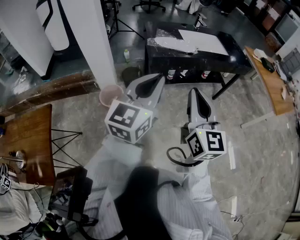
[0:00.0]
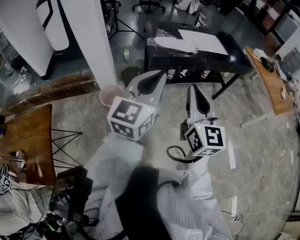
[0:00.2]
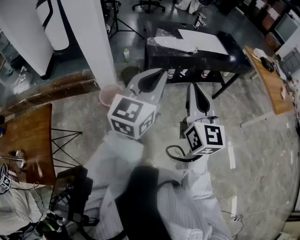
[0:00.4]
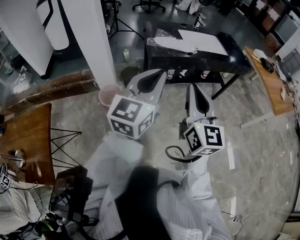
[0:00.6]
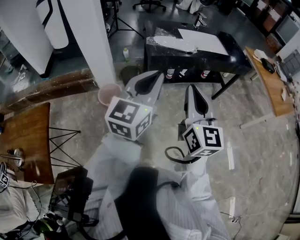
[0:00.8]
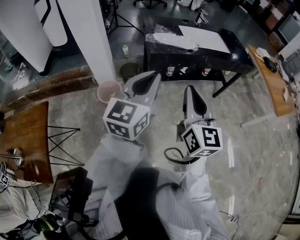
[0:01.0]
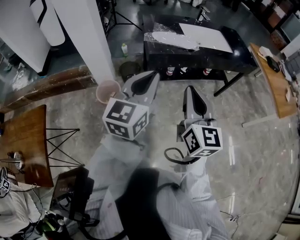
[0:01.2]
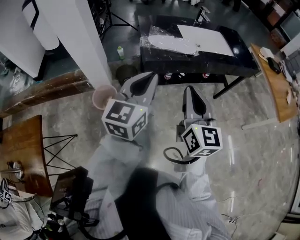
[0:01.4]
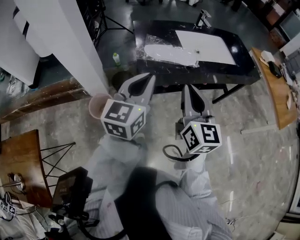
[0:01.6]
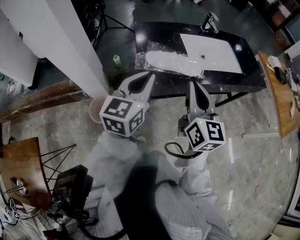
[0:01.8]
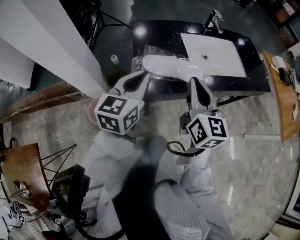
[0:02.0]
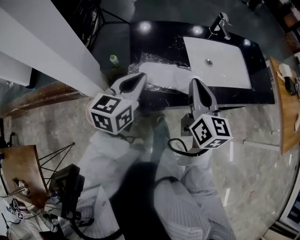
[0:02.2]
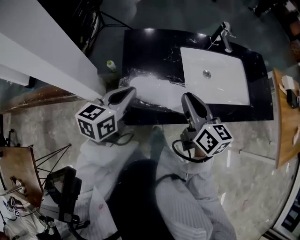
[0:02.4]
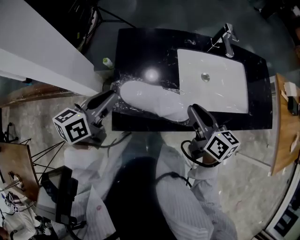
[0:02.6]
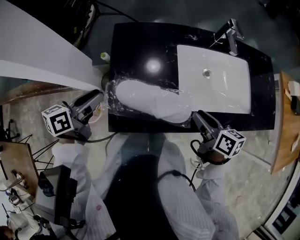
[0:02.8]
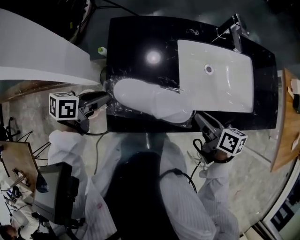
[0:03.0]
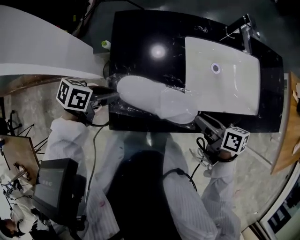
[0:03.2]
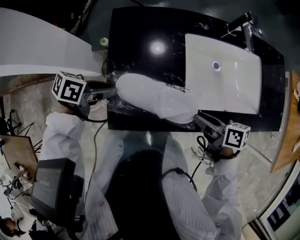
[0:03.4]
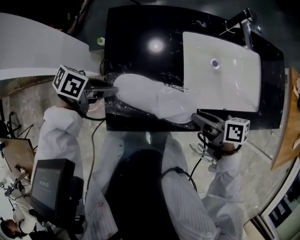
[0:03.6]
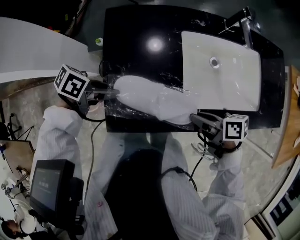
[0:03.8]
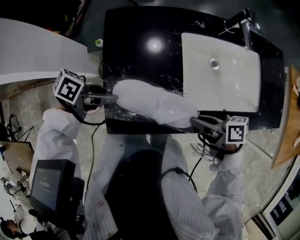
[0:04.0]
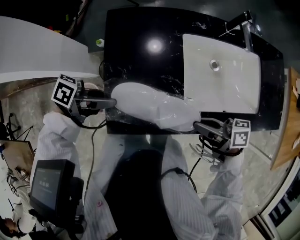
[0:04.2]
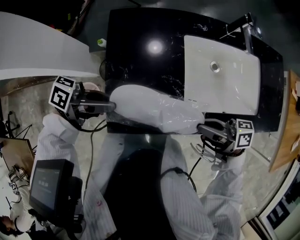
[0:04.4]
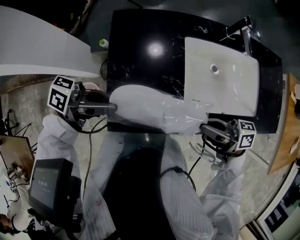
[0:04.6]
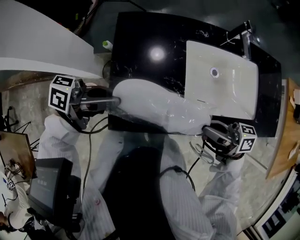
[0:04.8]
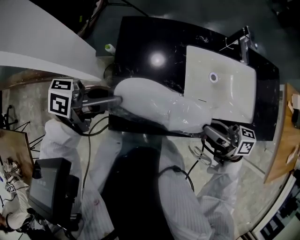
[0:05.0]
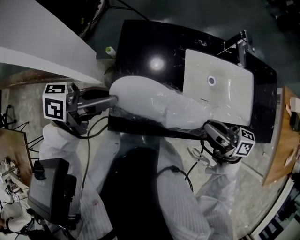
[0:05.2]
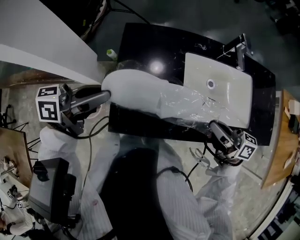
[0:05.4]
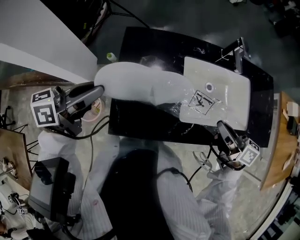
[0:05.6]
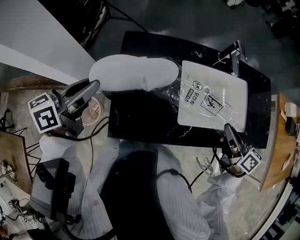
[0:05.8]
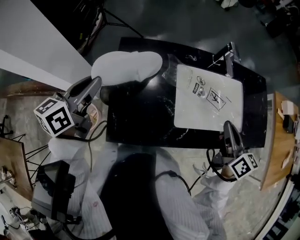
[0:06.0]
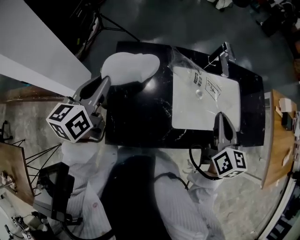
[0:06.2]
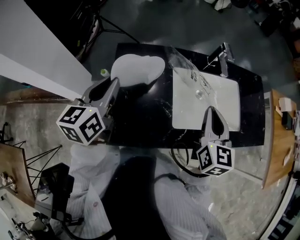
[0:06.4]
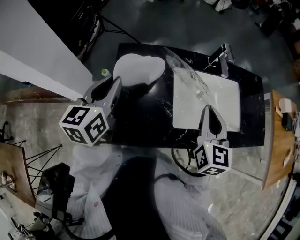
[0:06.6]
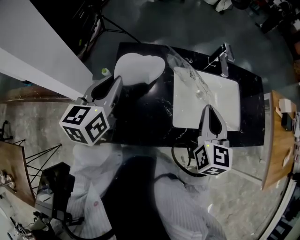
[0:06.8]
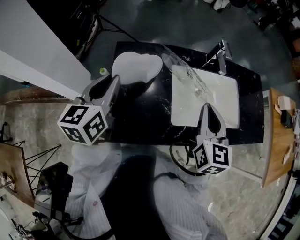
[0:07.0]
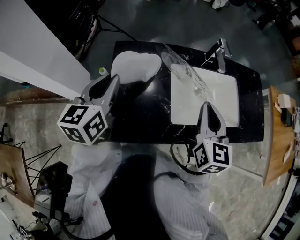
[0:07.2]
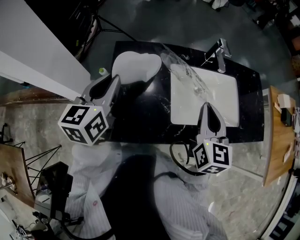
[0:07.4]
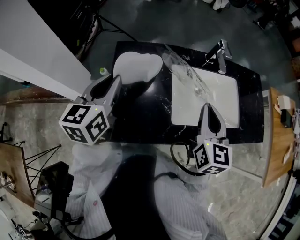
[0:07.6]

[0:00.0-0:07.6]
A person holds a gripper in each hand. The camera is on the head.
0:00.0 to 0:01.6: Both grippers travel together forward, approximately 25 cm.
0:01.6 to 0:03.0: The left gripper goes roughly 35 cm forward and downward, tilts its fingers approximately 30 degrees downward, and opens, while the right gripper goes some 40 cm forward, downward and to the right, tilts its fingers roughly 40 degrees downward, and opens.
0:03.0 to 0:04.6: Both grippers travel together upward, approximately 5 cm. The right gripper tilts its fingers about 30 degrees upward, and closes its fingers, while the left gripper points its fingers approximately 30 degrees further upward.
0:04.6 to 0:06.0: The right gripper ends up roughly 15 cm from where it was, and swivels some 60 degrees, while the left gripper shifts by some 15 cm, and rotates about 70 degrees.
0:06.0 to 0:07.6: The right gripper heads to the left, covering some 10 cm, and changes its angle by about 30 degrees. Meanwhile the left gripper moves to the right, roughly 5 cm.

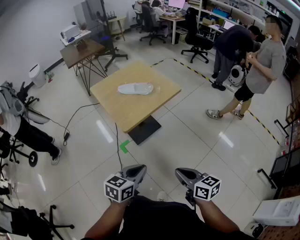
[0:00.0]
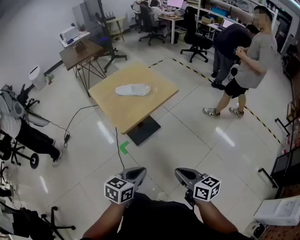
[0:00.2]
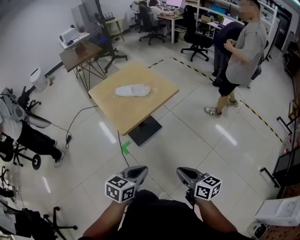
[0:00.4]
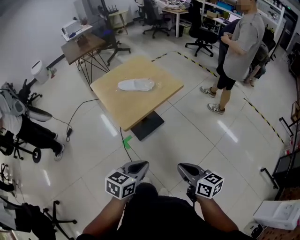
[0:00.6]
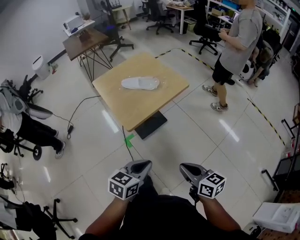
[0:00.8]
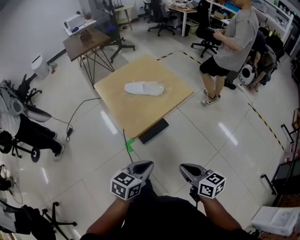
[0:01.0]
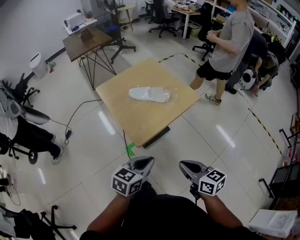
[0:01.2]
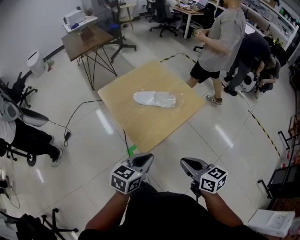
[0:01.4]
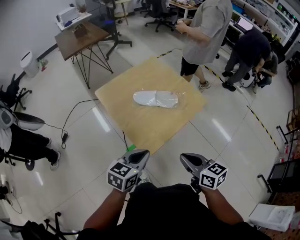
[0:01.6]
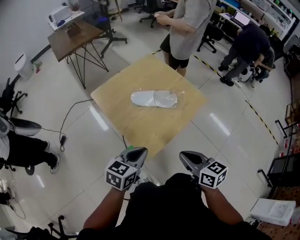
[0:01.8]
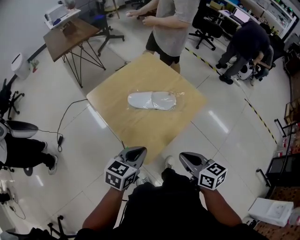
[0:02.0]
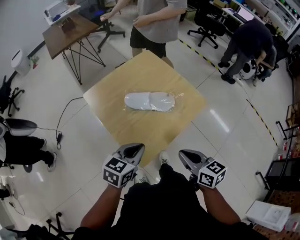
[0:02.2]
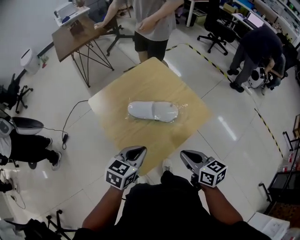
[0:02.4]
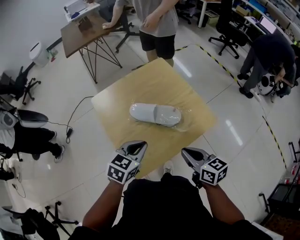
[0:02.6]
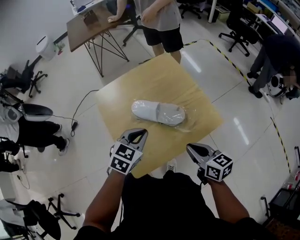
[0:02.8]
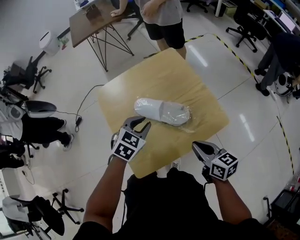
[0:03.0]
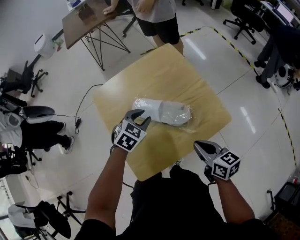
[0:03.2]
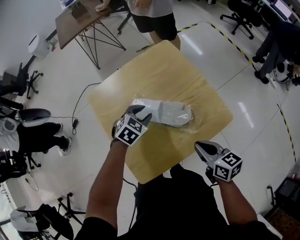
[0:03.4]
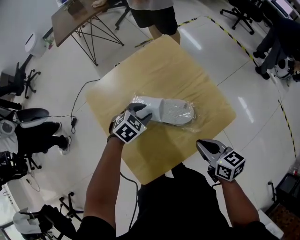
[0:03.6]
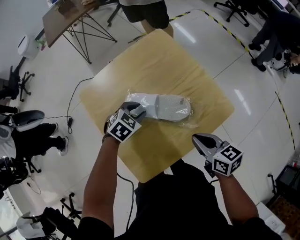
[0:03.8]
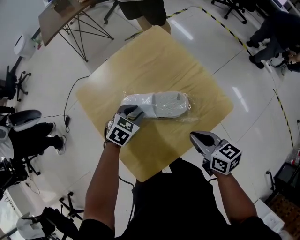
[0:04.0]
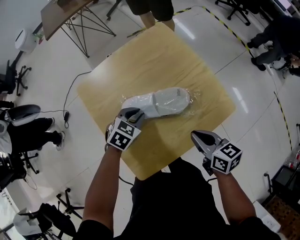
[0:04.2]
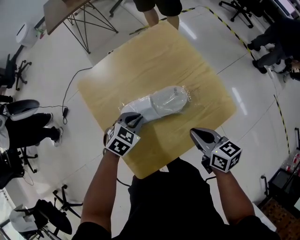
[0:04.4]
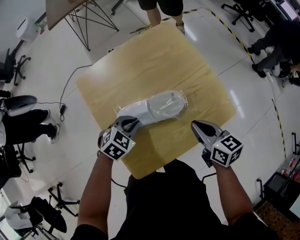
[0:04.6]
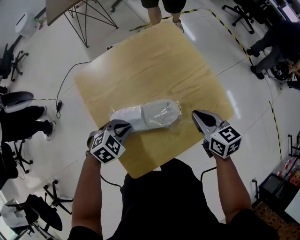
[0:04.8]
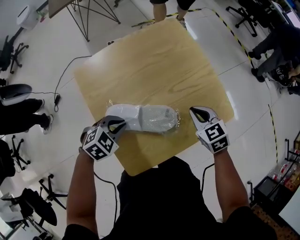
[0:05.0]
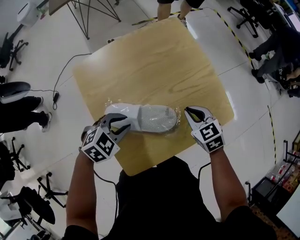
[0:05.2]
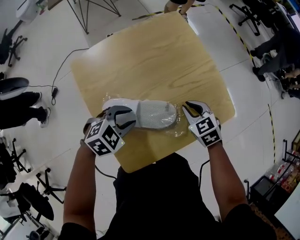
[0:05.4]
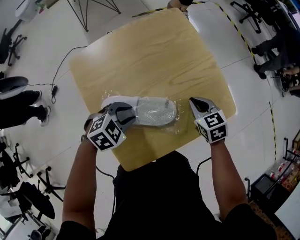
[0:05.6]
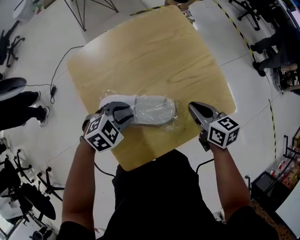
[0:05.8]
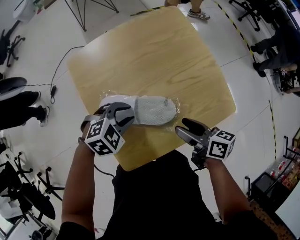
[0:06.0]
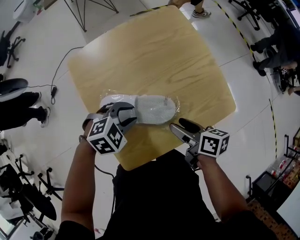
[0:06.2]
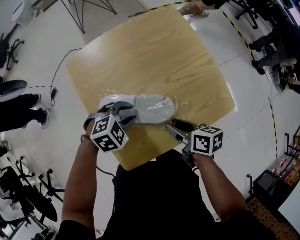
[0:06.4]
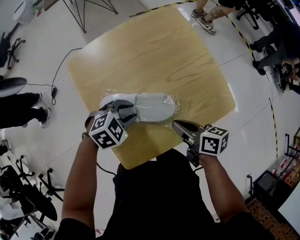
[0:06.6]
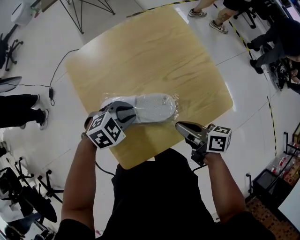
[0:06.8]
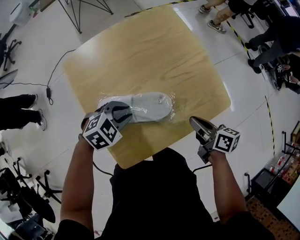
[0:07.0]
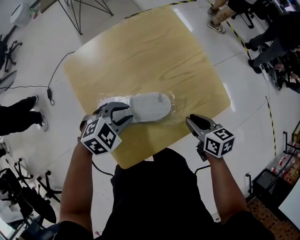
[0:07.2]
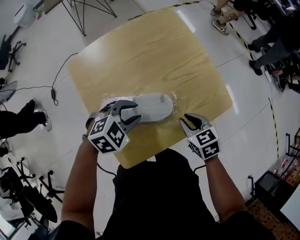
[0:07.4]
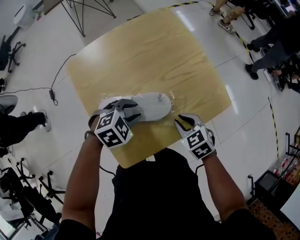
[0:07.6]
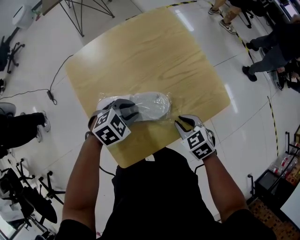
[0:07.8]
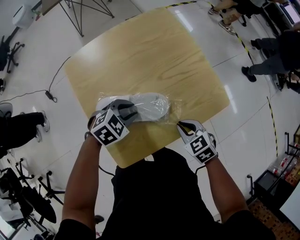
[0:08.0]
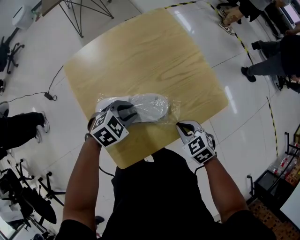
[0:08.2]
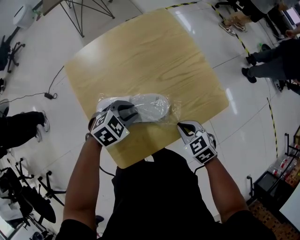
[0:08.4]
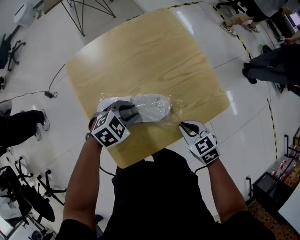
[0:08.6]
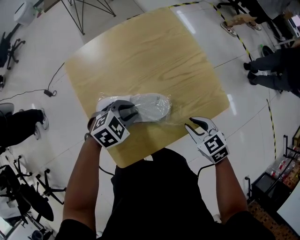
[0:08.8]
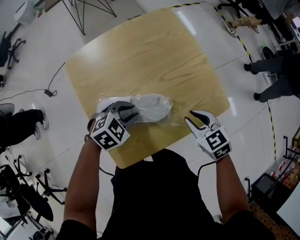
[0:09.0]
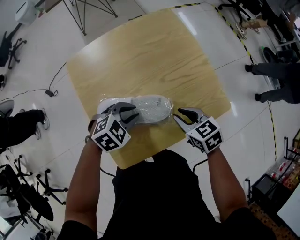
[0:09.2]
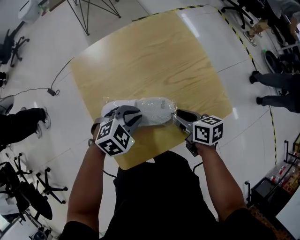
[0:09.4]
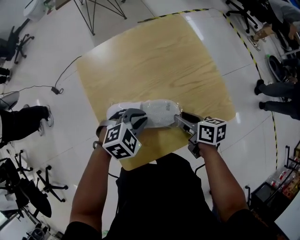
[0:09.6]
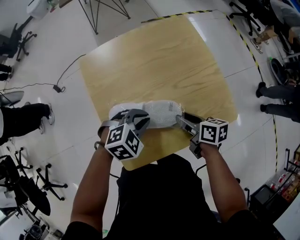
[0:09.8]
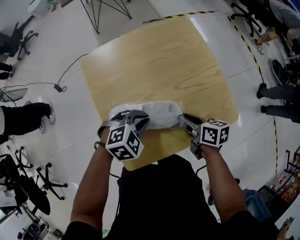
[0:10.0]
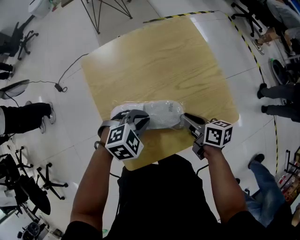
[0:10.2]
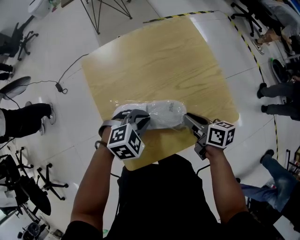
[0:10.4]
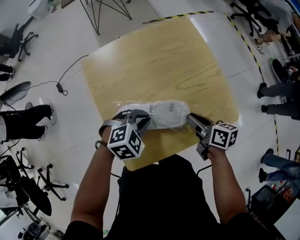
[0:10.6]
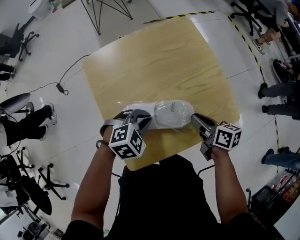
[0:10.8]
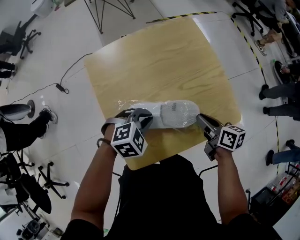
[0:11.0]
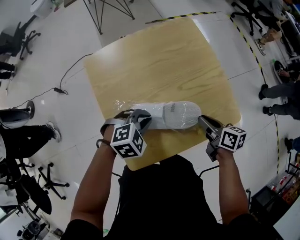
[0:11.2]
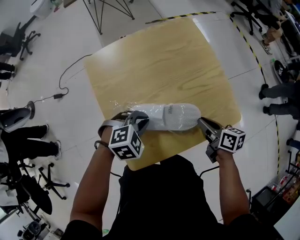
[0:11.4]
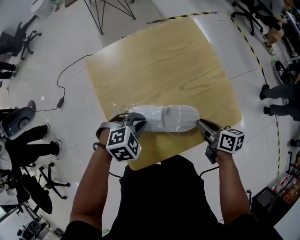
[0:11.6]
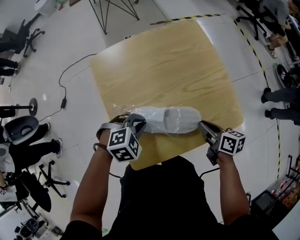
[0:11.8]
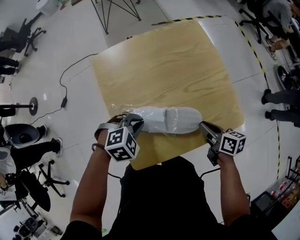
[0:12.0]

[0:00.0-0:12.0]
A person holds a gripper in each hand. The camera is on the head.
0:00.0 to 0:01.6: Both grippers move forward and to the left, roughly 35 cm.
0:01.6 to 0:03.0: The left gripper heads forward, covering approximately 30 cm, and swivels about 30 degrees, while the right gripper heads forward and to the right, covering roughly 30 cm.
0:03.0 to 0:04.4: The left gripper is displaced downward by roughly 15 cm. Meanwhile the right gripper travels downward by some 5 cm.
0:04.4 to 0:06.0: The right gripper goes downward and returns, about 10 cm each way, rotates roughly 20 degrees, and opens. The left gripper swivels approximately 20 degrees, and opens its fingers.
0:06.0 to 0:07.6: The right gripper heads downward, covering some 5 cm, twists roughly 50 degrees counterclockwise, seen from behind, and closes.
0:07.6 to 0:09.0: The right gripper changes place by roughly 5 cm.
0:09.0 to 0:10.4: The right gripper travels to the left by roughly 5 cm, and rotates around the line of its fingers by roughly 50 degrees, clockwise from behind.
0:10.4 to 0:12.0: The left gripper is displaced to the left by approximately 5 cm.

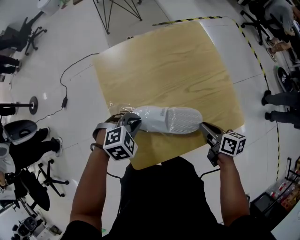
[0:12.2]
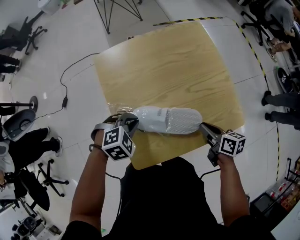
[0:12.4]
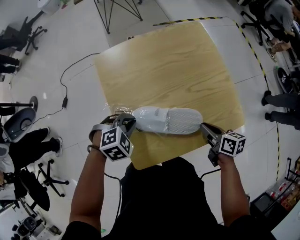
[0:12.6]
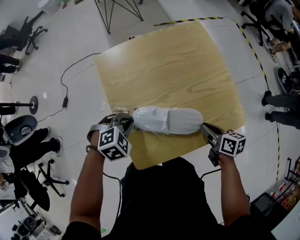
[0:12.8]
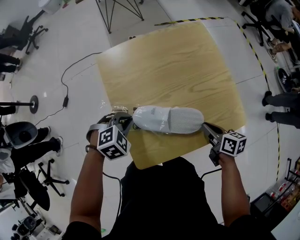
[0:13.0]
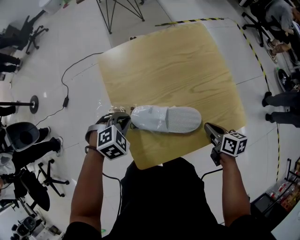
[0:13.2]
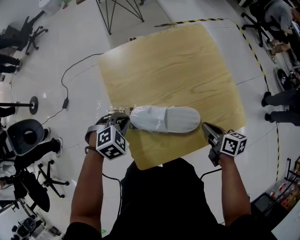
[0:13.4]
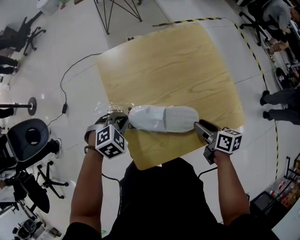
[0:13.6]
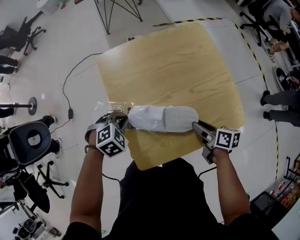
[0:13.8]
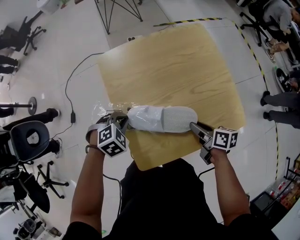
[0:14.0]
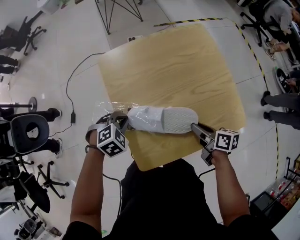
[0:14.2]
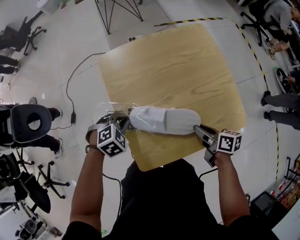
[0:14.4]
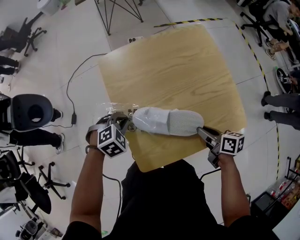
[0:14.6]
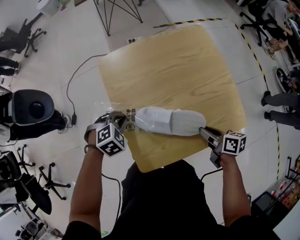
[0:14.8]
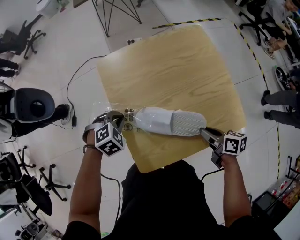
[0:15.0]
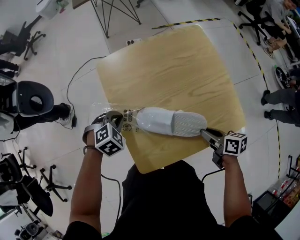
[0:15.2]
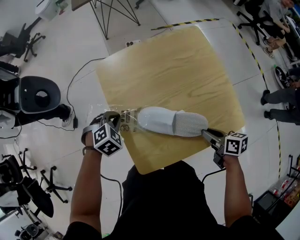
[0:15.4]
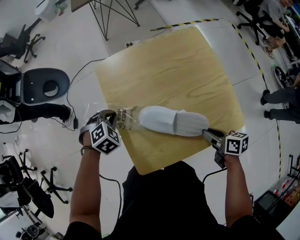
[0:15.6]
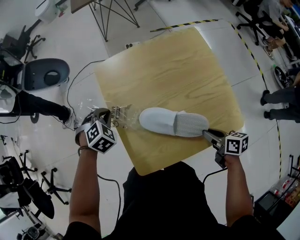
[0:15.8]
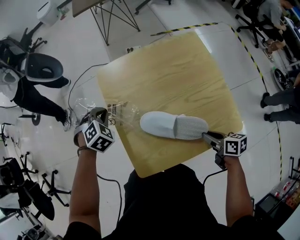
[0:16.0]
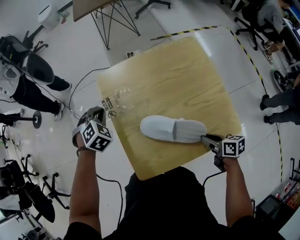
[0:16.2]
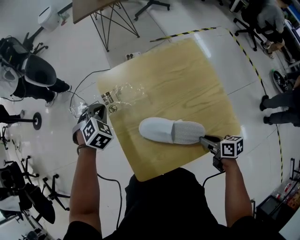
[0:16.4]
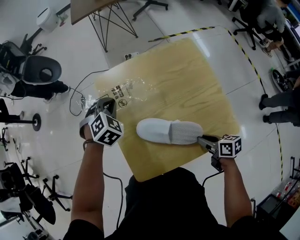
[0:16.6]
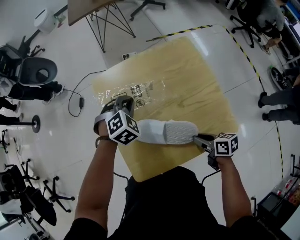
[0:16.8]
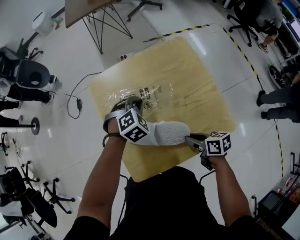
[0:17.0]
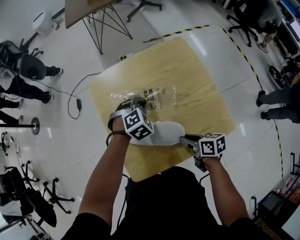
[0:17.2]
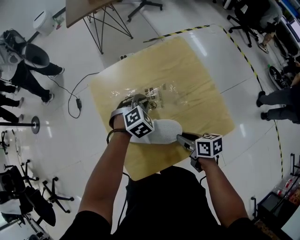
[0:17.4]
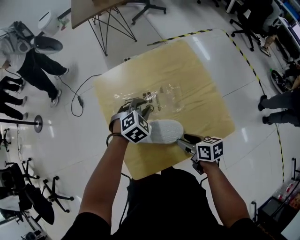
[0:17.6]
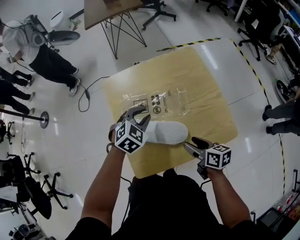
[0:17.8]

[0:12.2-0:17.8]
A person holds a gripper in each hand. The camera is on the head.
0:12.2 to 0:13.6: The right gripper opens; the left gripper is displaced to the left by some 10 cm.
0:13.6 to 0:15.0: The right gripper closes.
0:15.0 to 0:16.4: The left gripper is displaced forward and upward by about 15 cm, and turns by about 20 degrees.
0:16.4 to 0:17.8: The left gripper moves to the right and backward, about 20 cm, swivels some 30 degrees, and opens. The right gripper shifts by about 5 cm, and opens up.
